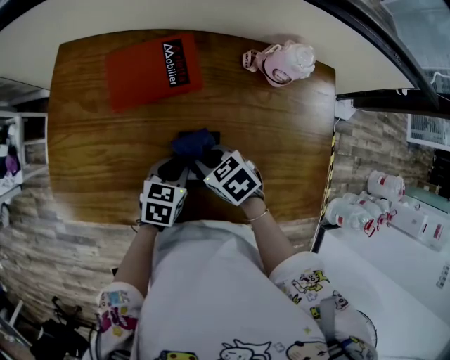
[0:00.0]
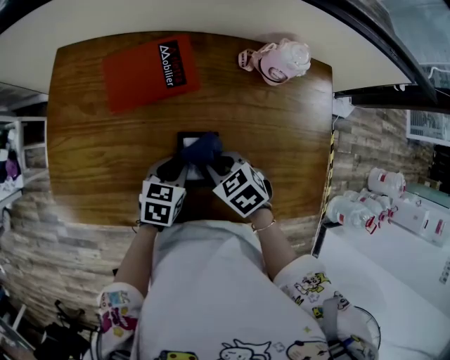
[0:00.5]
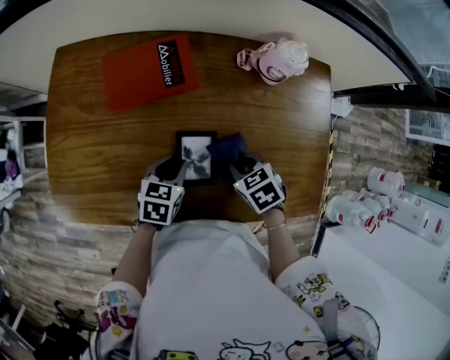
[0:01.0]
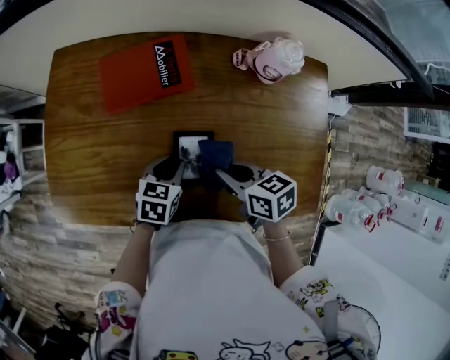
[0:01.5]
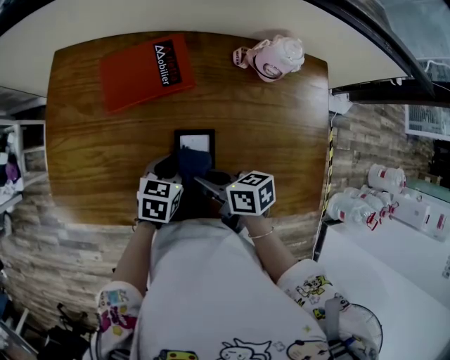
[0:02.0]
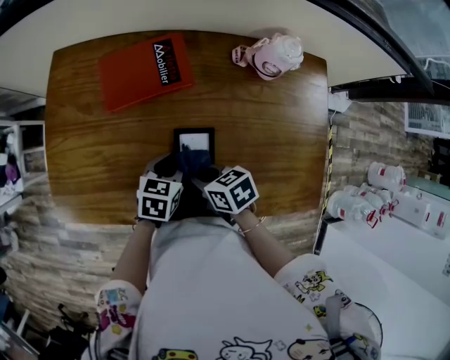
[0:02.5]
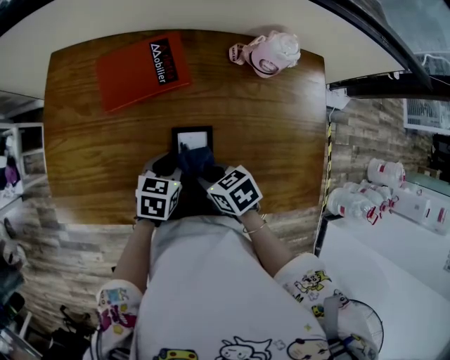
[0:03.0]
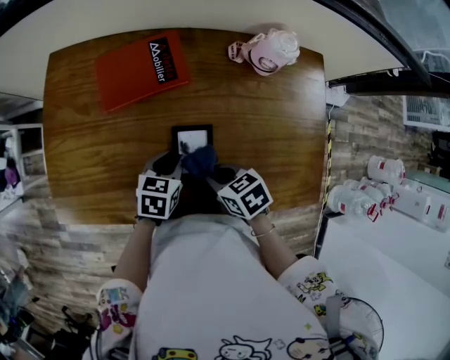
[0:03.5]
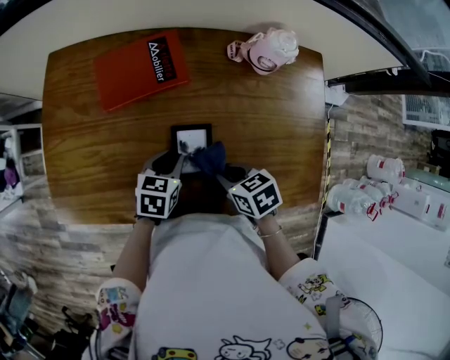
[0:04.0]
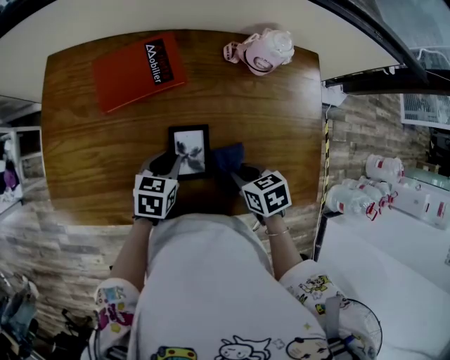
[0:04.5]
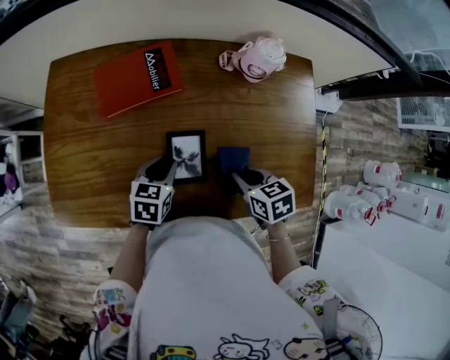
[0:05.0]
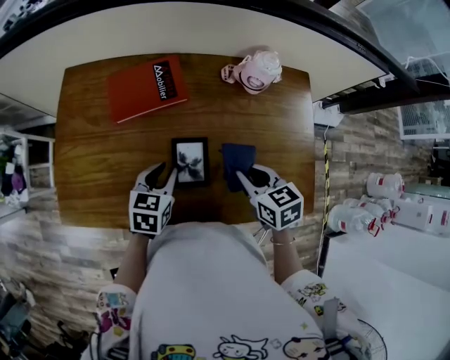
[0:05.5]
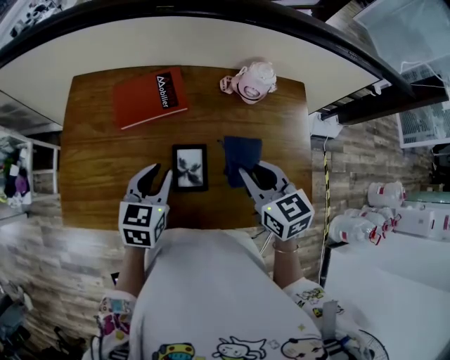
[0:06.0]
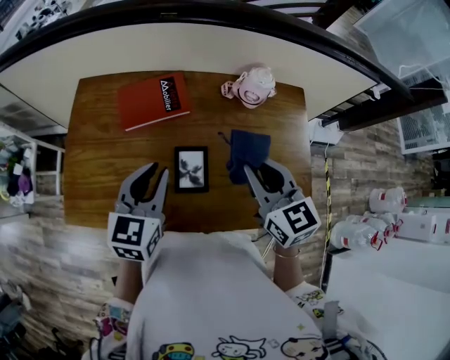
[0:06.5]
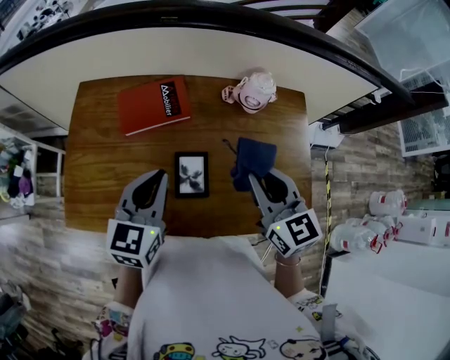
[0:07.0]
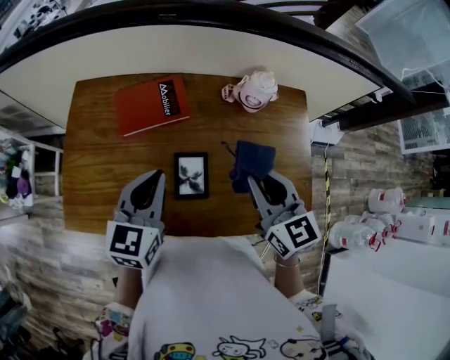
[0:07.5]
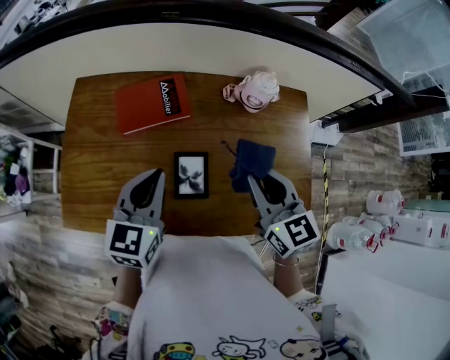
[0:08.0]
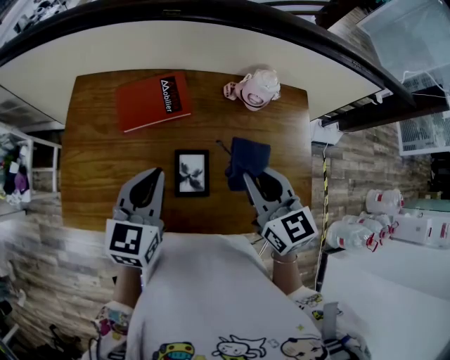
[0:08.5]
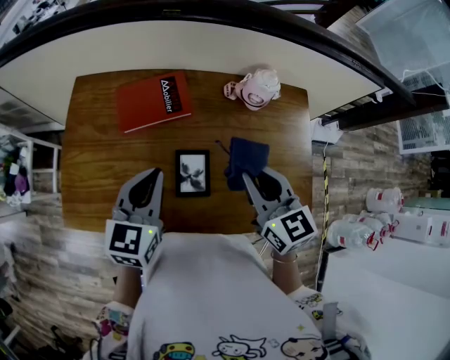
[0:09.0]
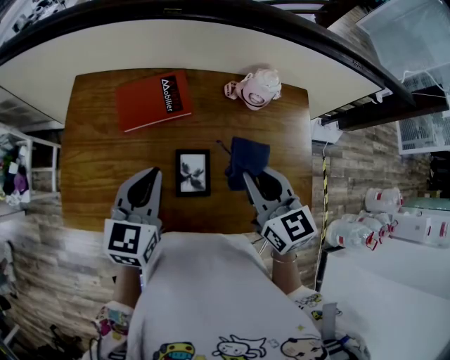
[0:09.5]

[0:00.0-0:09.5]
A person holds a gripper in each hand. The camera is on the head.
0:00.0 to 0:02.0: The right gripper moves some 10 cm to the right and comes back, and changes its angle by about 40 degrees.
0:02.0 to 0:04.0: The right gripper moves to the right, approximately 5 cm, and swivels approximately 30 degrees.
0:04.0 to 0:05.5: The right gripper moves upward and to the right, roughly 10 cm, and changes its angle by about 20 degrees, while the left gripper shifts roughly 5 cm upward.
0:05.5 to 0:07.5: The grippers both shift upward by about 15 cm. The left gripper swivels approximately 20 degrees, and closes up. Meanwhile the right gripper rotates roughly 30 degrees.
0:07.5 to 0:09.5: The grippers make only small movements.

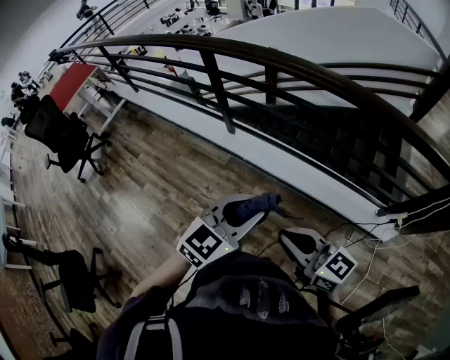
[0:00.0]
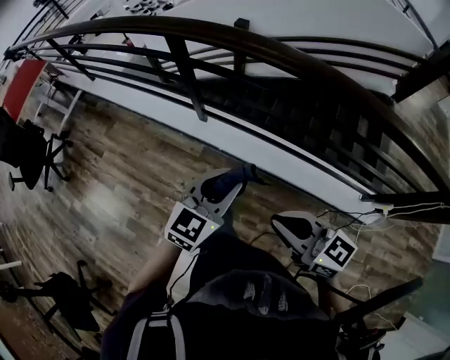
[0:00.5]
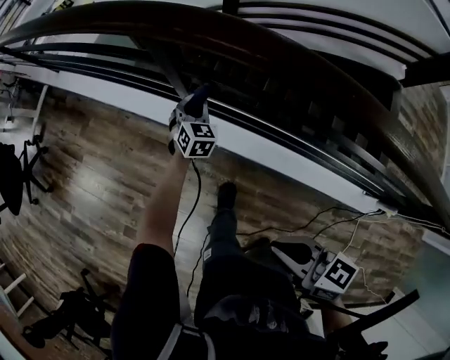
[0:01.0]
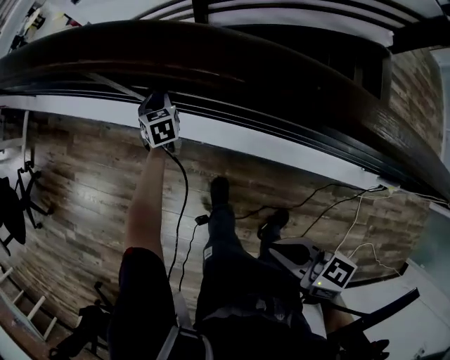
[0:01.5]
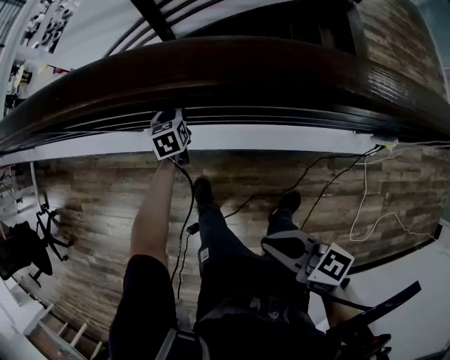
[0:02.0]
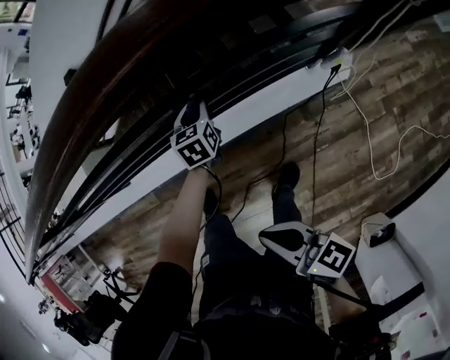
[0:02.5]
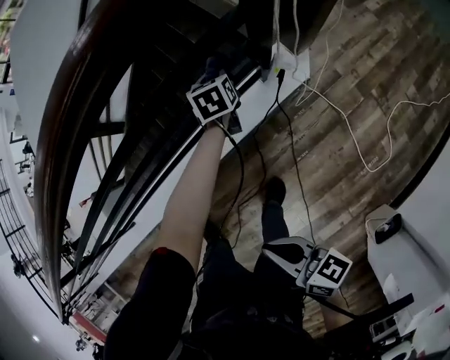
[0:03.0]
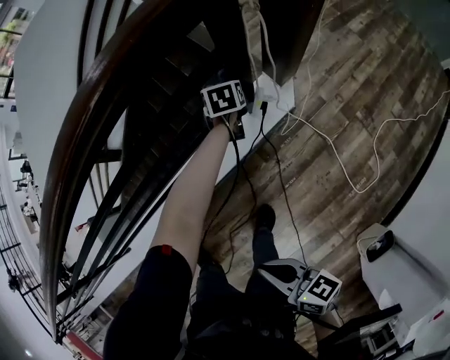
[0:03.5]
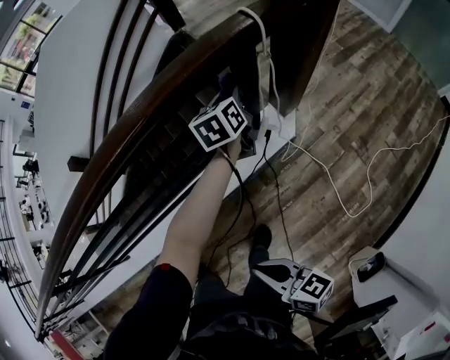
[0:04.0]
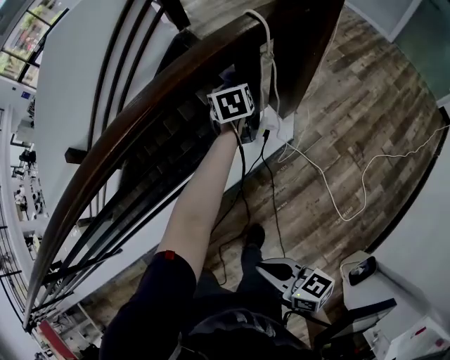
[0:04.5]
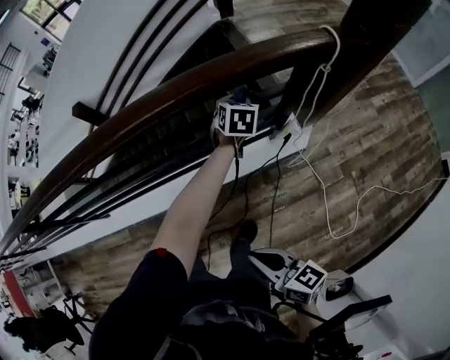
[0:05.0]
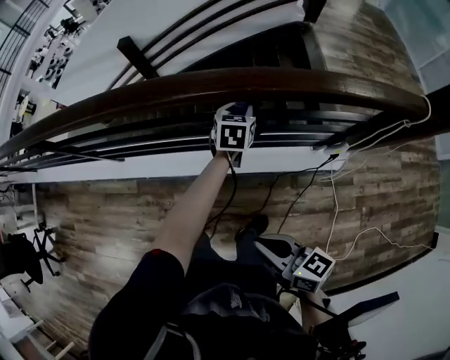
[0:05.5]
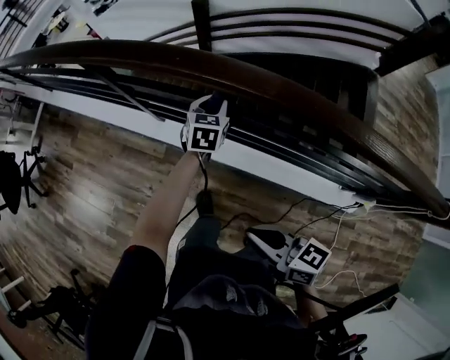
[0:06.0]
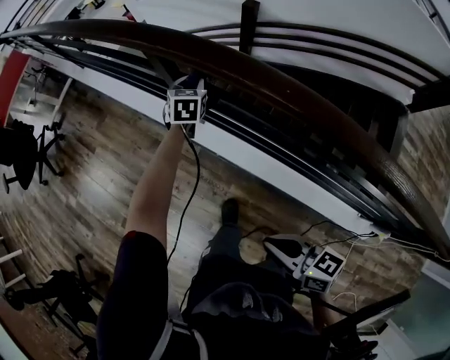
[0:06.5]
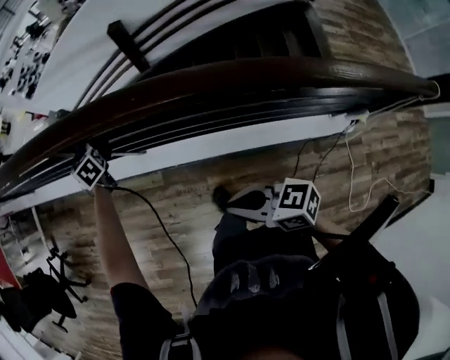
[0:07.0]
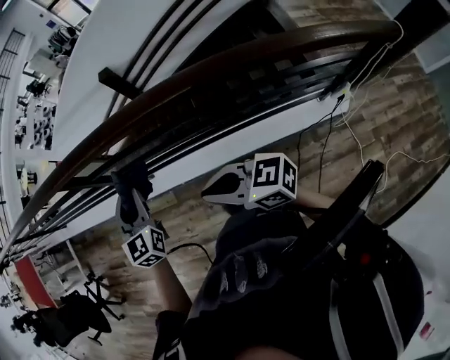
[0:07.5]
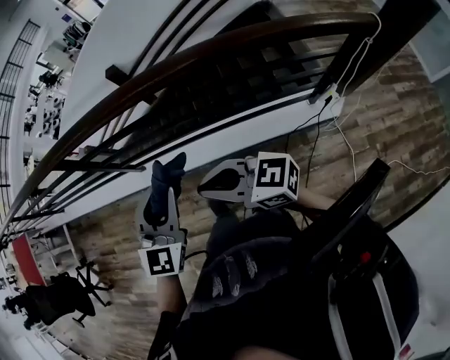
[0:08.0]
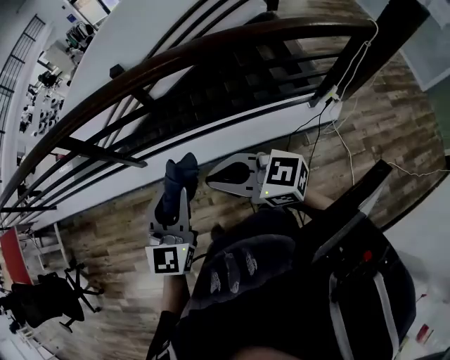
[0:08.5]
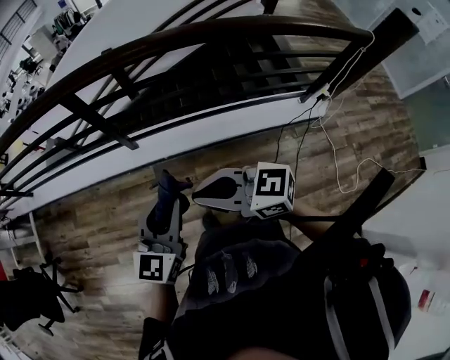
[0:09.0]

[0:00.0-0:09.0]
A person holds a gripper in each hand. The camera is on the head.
0:00.0 to 0:02.0: The right gripper travels forward, downward and to the right by some 30 cm, and rotates roughly 30 degrees. Meanwhile the left gripper is displaced forward and downward by roughly 70 cm, and turns by approximately 40 degrees.
0:02.0 to 0:04.5: Both grippers are carried some 70 cm. The right gripper changes its angle by approximately 50 degrees; the left gripper changes its angle by about 40 degrees.
0:04.5 to 0:07.0: The pair of grippers is taken roughly 1 m. The left gripper rotates roughly 70 degrees; the right gripper rotates about 60 degrees.
0:07.0 to 0:09.0: The right gripper ends up roughly 35 cm from where it was, and rotates roughly 20 degrees, while the left gripper moves roughly 60 cm, and swivels some 70 degrees.

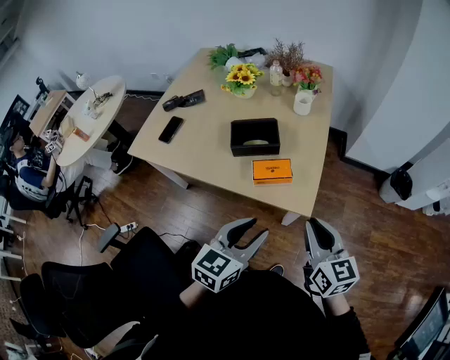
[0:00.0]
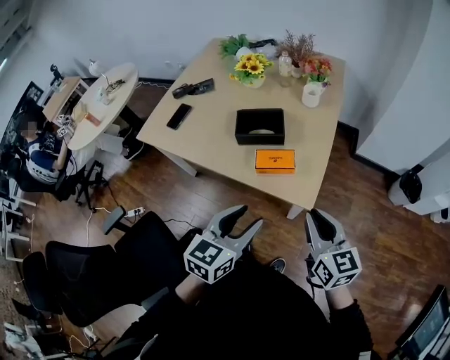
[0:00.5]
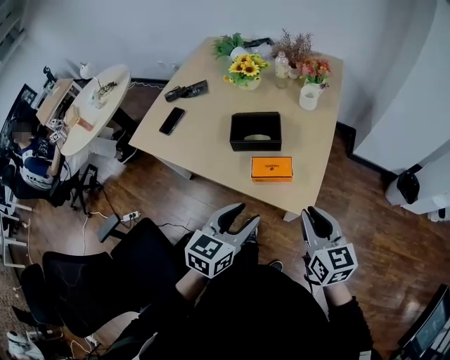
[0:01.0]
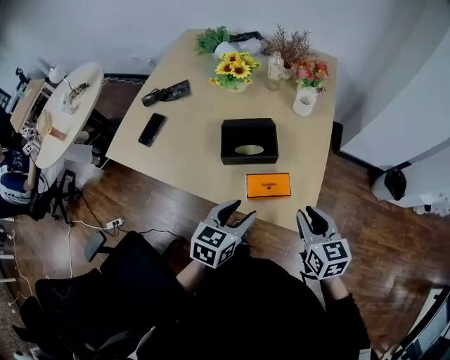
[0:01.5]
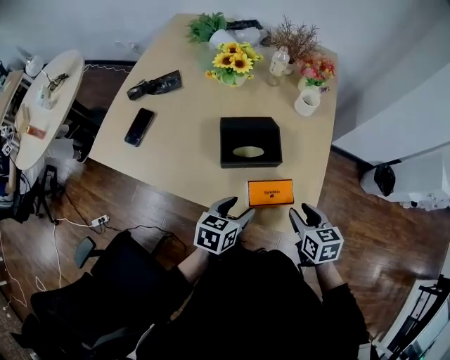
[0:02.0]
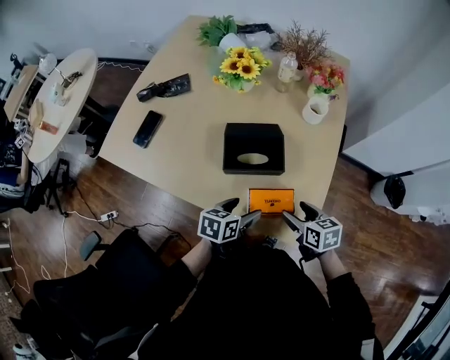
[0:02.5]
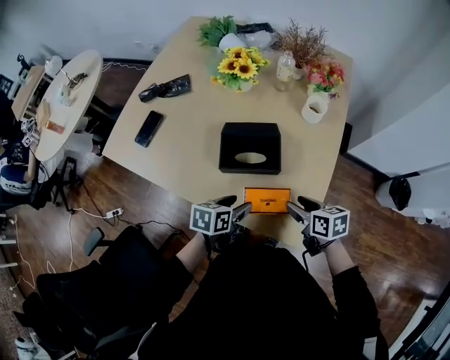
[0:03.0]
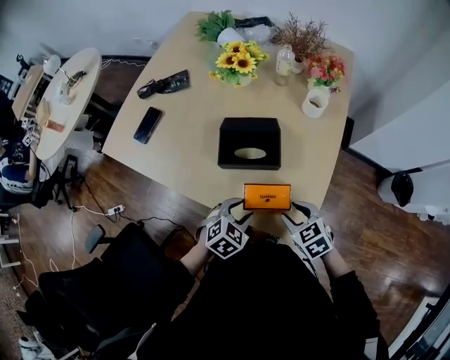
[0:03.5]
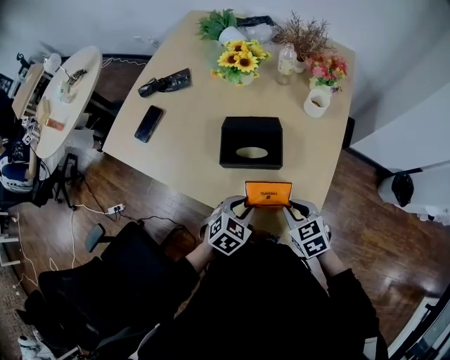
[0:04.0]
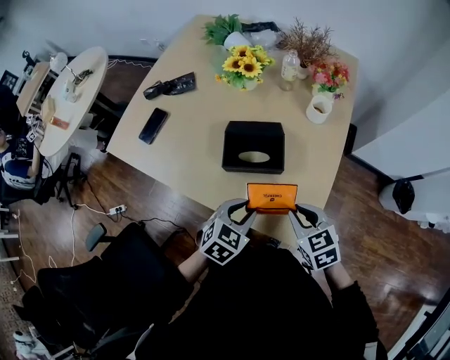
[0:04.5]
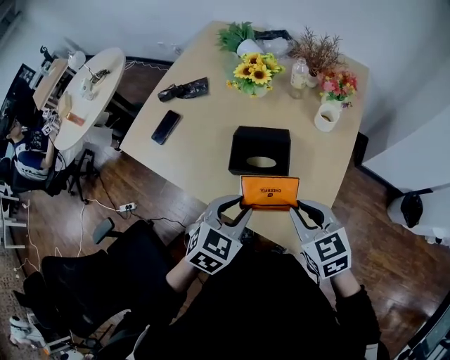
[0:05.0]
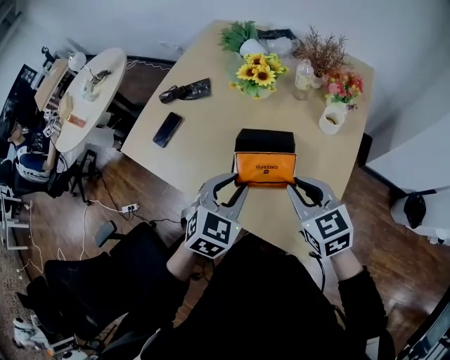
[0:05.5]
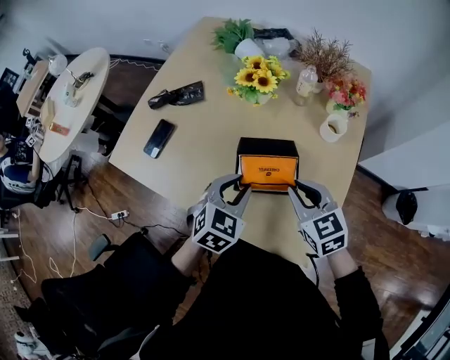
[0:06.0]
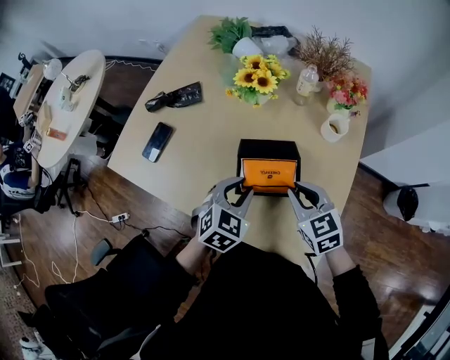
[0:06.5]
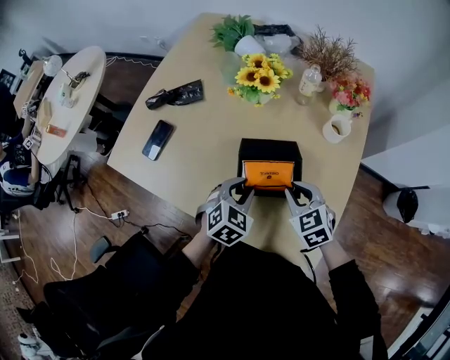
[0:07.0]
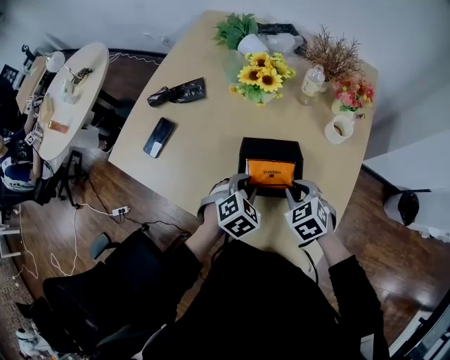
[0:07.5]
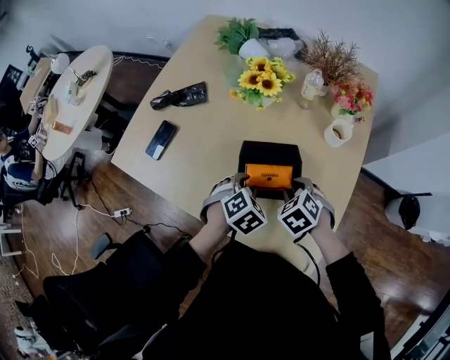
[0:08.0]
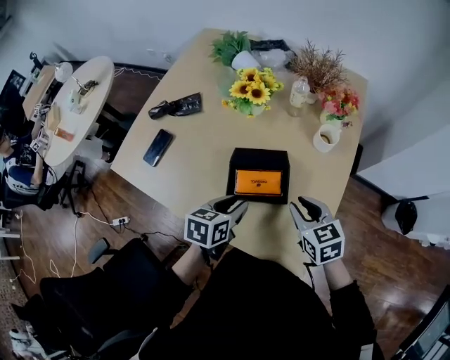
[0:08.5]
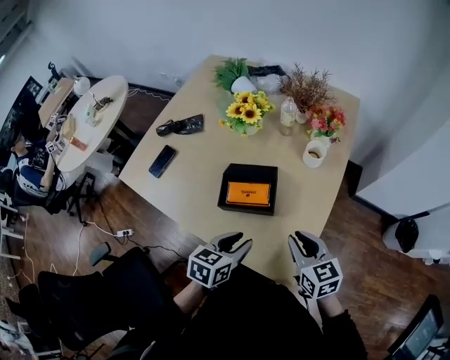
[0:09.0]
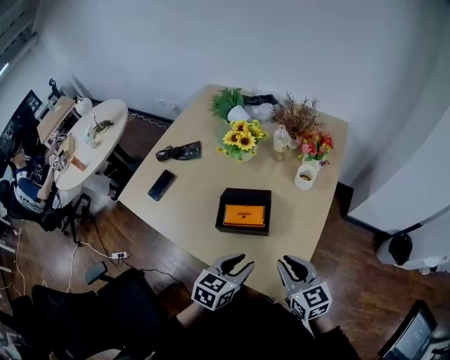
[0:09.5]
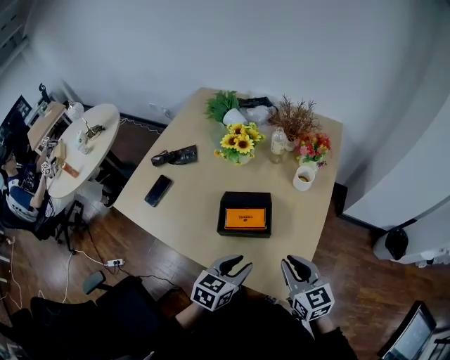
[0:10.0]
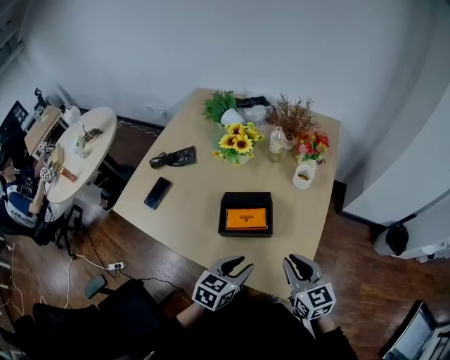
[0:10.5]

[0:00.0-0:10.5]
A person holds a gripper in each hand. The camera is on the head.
0:00.0 to 0:02.0: The grippers both shift forward and downward by roughly 25 cm. The right gripper turns by roughly 30 degrees, and opens up, while the left gripper turns by some 20 degrees.
0:02.0 to 0:04.0: The left gripper shifts by roughly 5 cm, turns by approximately 30 degrees, and closes up. Meanwhile the right gripper ends up approximately 5 cm from where it was, changes its angle by roughly 30 degrees, and opens, then closes once more.
0:04.0 to 0:06.5: The two grippers go approximately 15 cm forward and upward.
0:06.5 to 0:08.5: The right gripper moves to the right, approximately 5 cm, and moves about 10 cm downward and comes back. Meanwhile the left gripper twists roughly 40 degrees counterclockwise, seen from behind.
0:08.5 to 0:10.5: The right gripper heads backward and upward, covering roughly 10 cm. The left gripper heads backward and to the right, covering roughly 10 cm.
